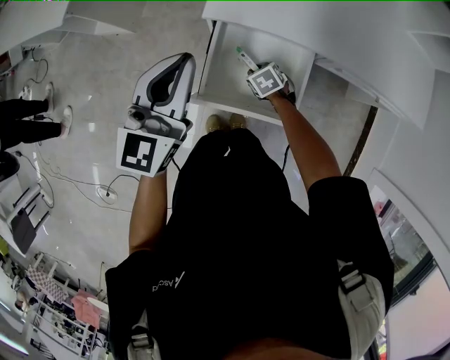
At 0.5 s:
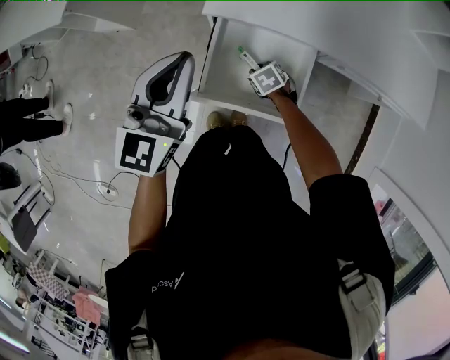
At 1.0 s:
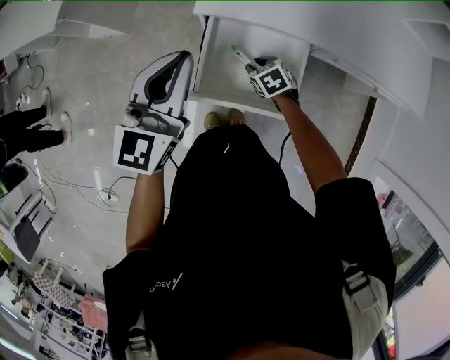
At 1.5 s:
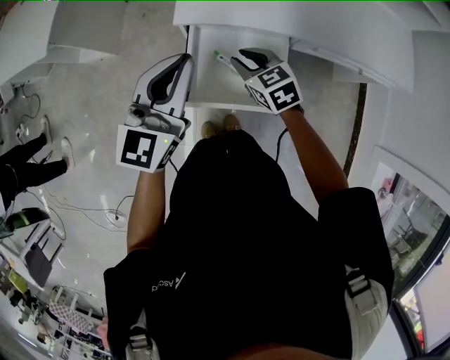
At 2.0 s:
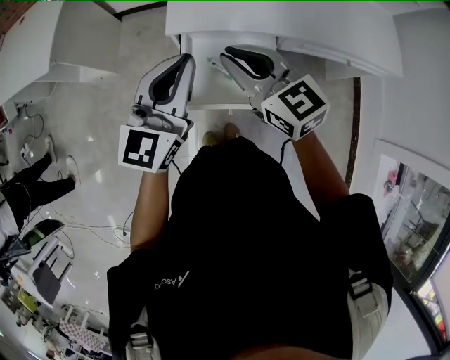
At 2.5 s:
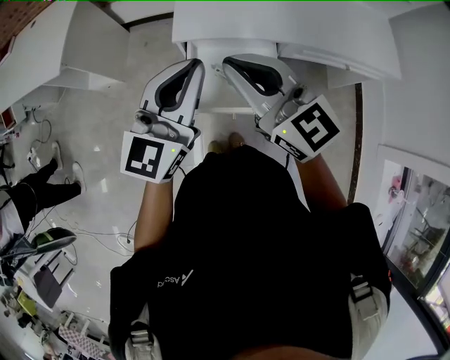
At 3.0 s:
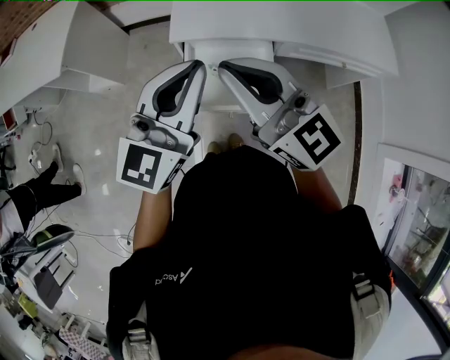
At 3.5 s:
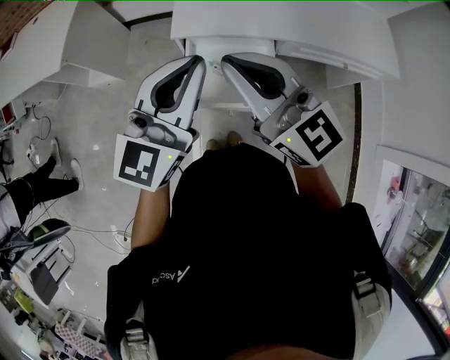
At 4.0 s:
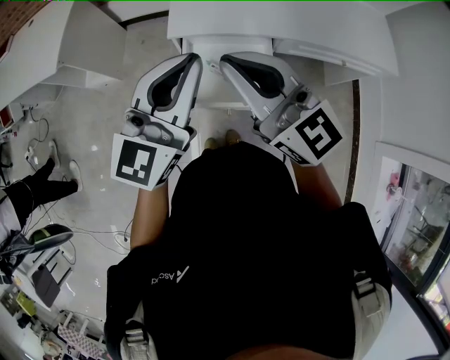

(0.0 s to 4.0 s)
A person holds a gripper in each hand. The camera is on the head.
0.0 s - 2.0 s: The right gripper goes about 40 cm upward, and tips its fingers upward by approximately 50 degrees, while the left gripper travels to the right by about 5 cm.
2.0 s - 4.0 s: Both grippers travel together upward and backward, some 10 cm.

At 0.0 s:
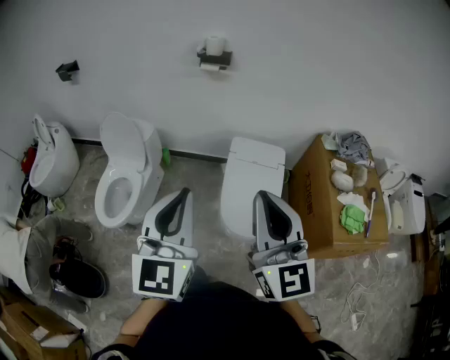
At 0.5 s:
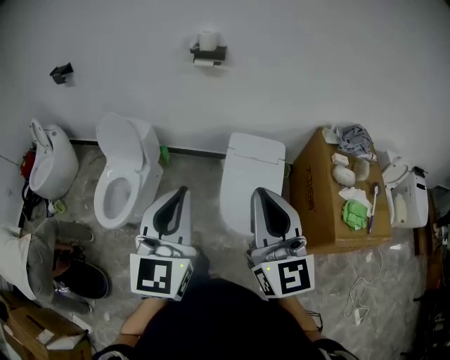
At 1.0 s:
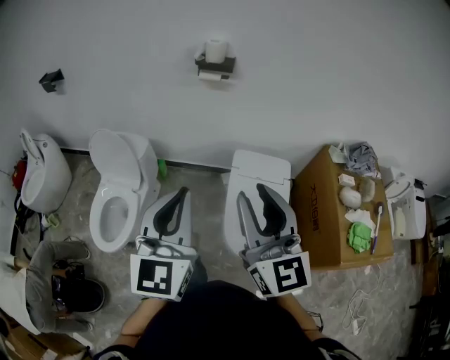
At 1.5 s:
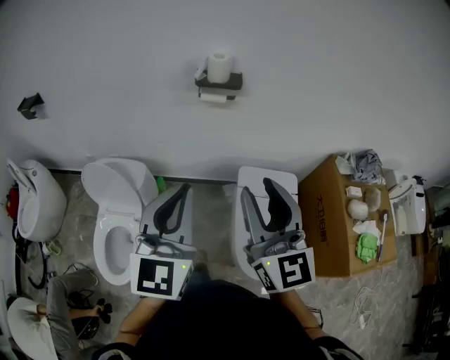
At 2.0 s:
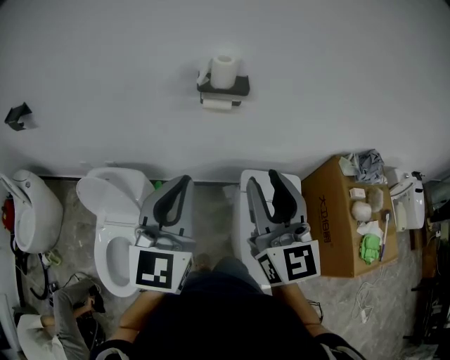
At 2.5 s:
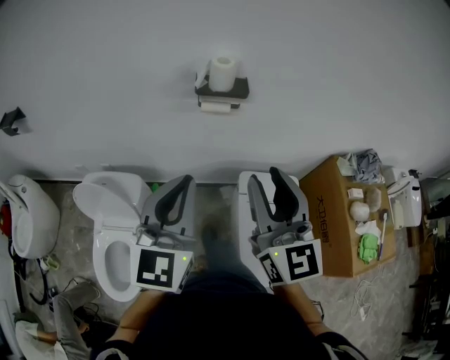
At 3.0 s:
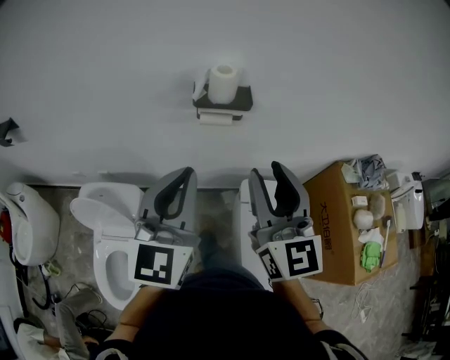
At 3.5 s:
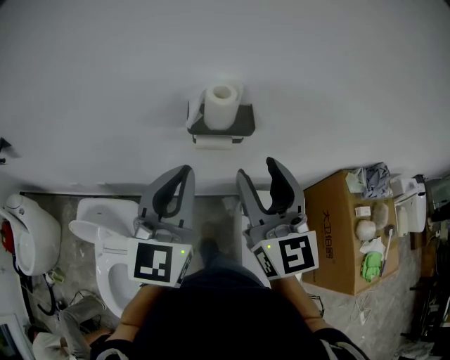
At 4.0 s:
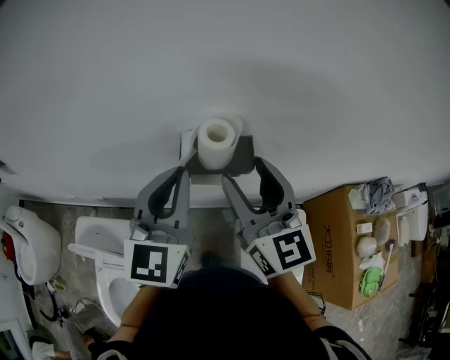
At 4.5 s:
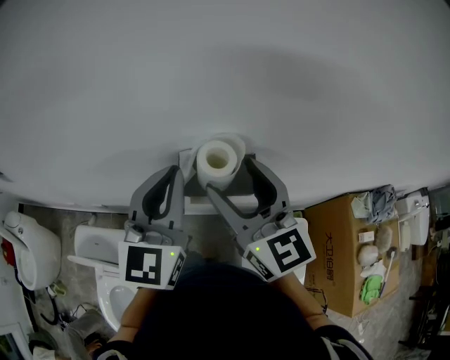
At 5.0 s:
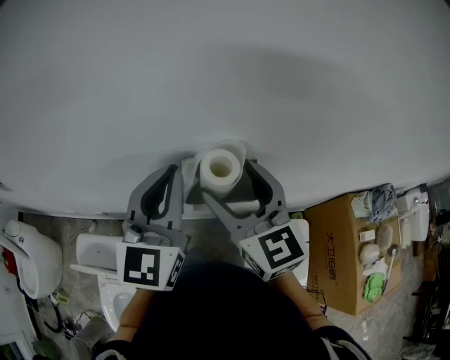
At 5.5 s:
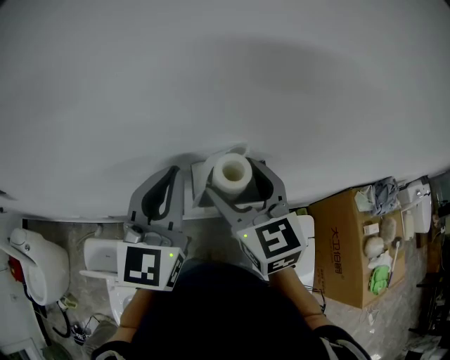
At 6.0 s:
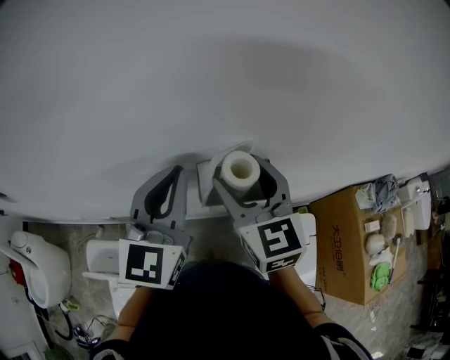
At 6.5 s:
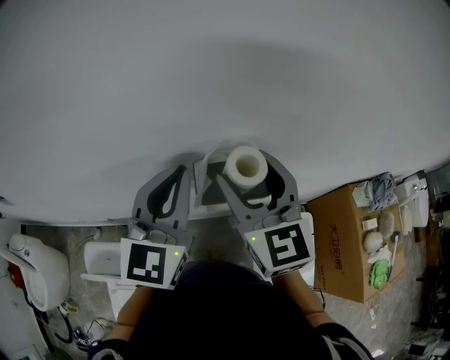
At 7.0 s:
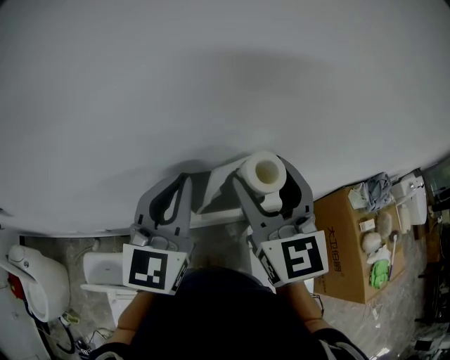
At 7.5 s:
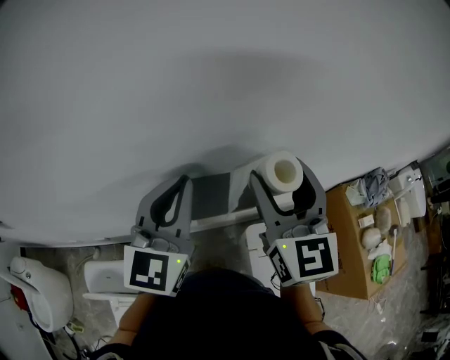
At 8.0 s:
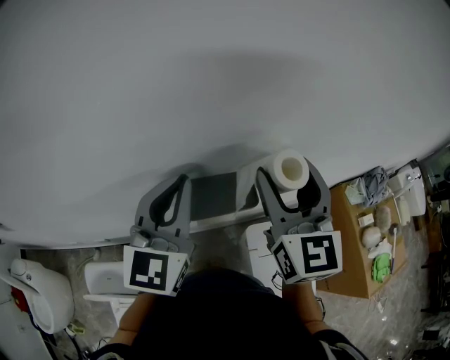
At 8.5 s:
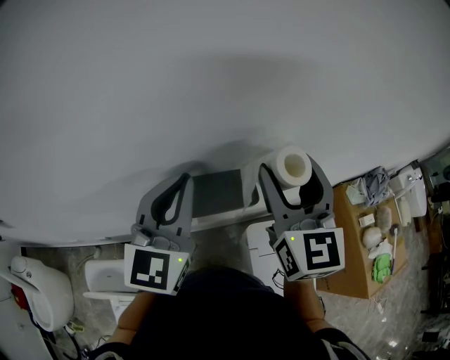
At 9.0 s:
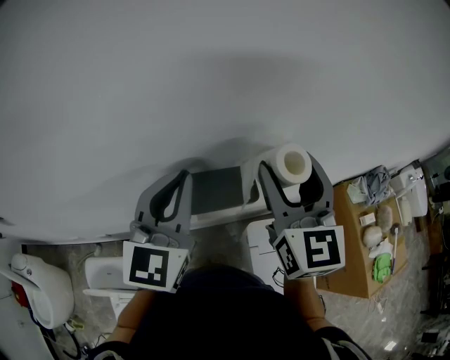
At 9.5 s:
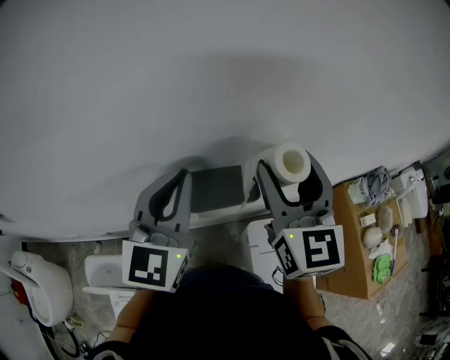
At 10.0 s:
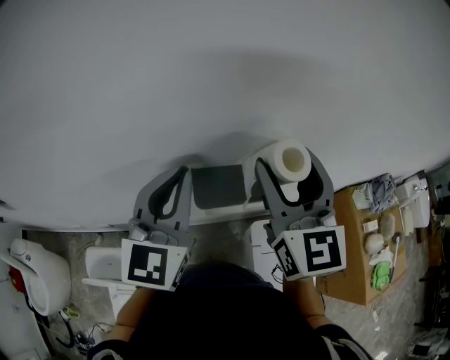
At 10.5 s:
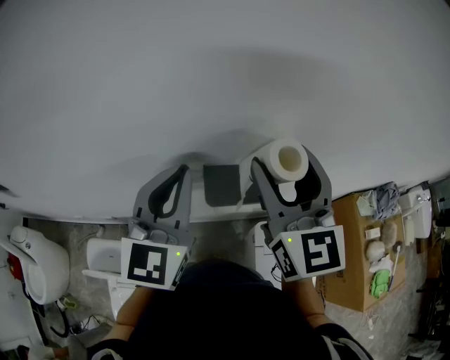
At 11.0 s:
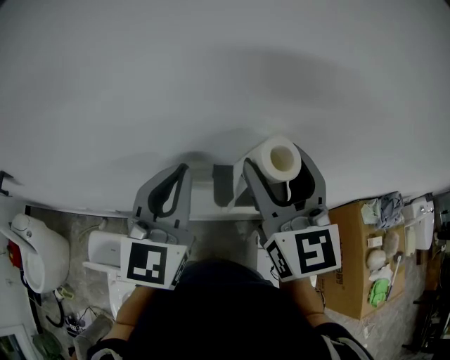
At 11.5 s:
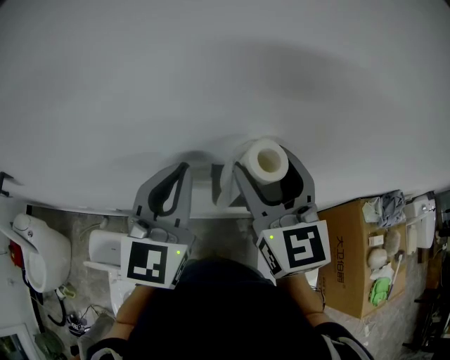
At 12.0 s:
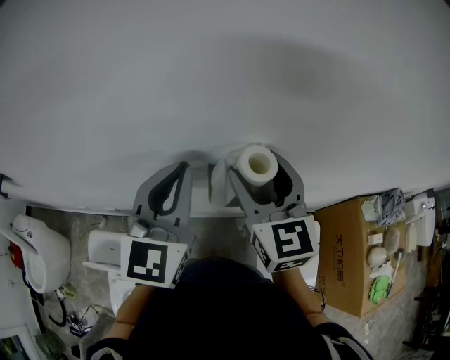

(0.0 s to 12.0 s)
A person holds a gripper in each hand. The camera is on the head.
0.0 s - 2.0 s: The two grippers travel together, forward, some 50 cm. The right gripper opens.
2.0 s - 4.0 s: Both grippers travel together forward, approximately 30 cm.
4.0 s - 6.0 s: The two grippers go some 10 cm forward.
6.0 s - 8.0 s: The right gripper heads to the right and upward, covering roughly 15 cm, and changes its angle by about 20 degrees.
8.0 s - 10.0 s: There are only small adjustments of the grippers.
10.0 s - 12.0 s: The right gripper goes approximately 10 cm downward and to the left.

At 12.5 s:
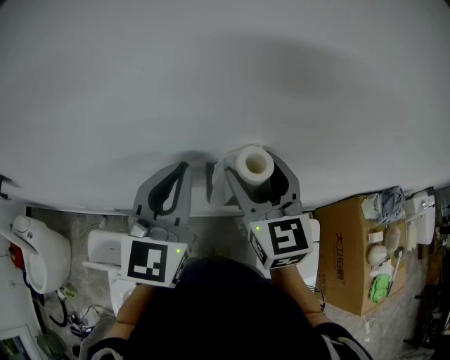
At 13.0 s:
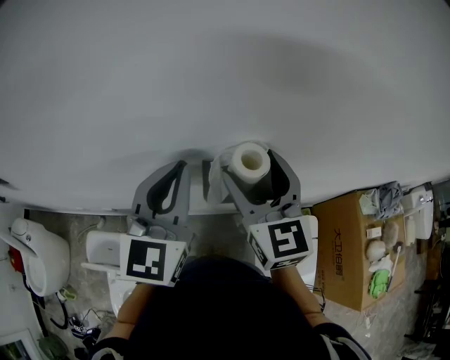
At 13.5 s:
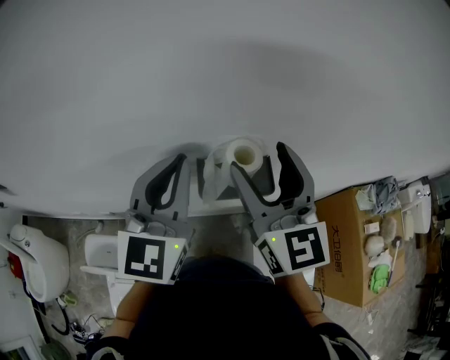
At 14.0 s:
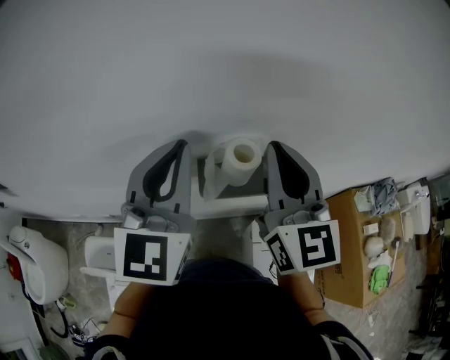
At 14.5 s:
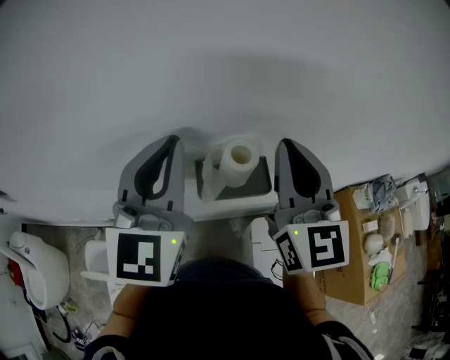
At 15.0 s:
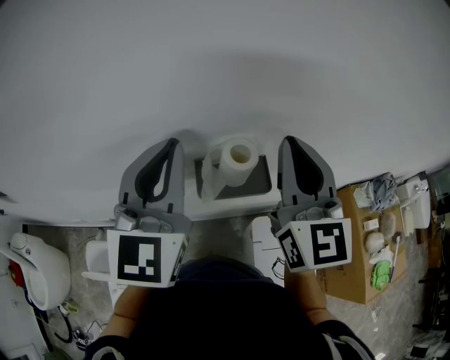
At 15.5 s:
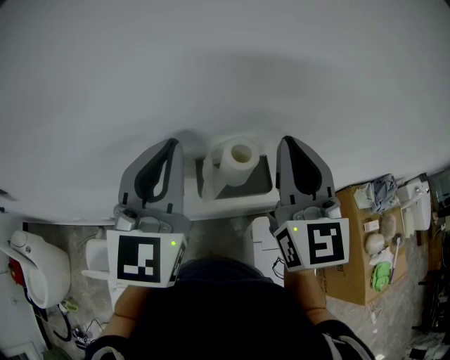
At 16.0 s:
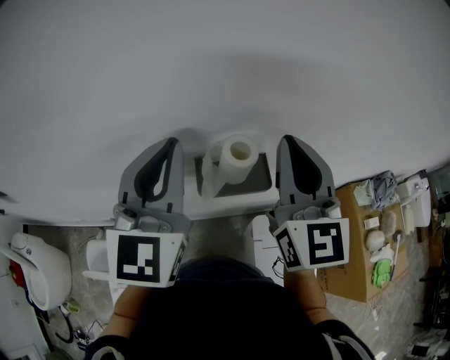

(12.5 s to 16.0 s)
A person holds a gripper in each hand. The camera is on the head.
12.5 s - 14.5 s: The left gripper shifts some 5 cm upward, while the right gripper moves upward and to the right, about 10 cm, and closes.
14.5 s - 16.0 s: Both grippers stay put.

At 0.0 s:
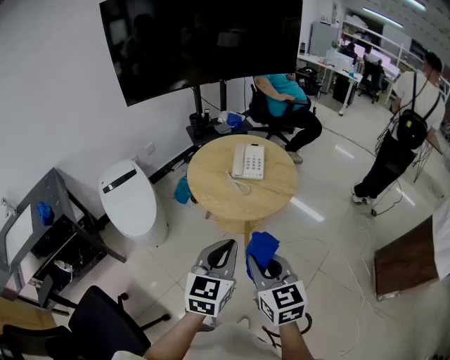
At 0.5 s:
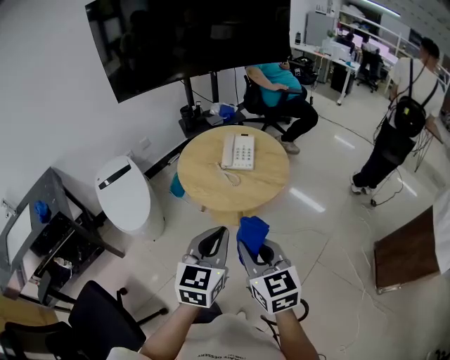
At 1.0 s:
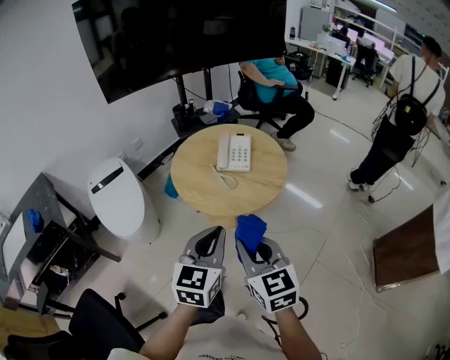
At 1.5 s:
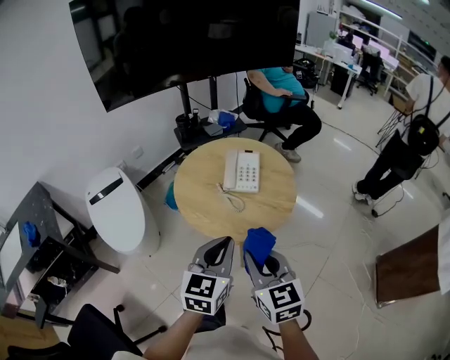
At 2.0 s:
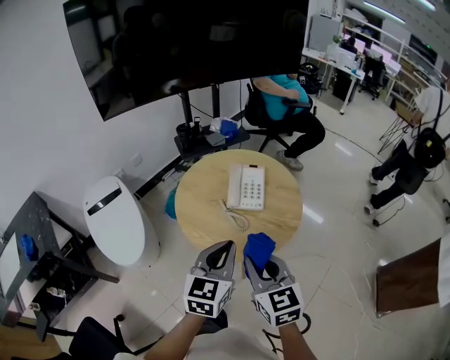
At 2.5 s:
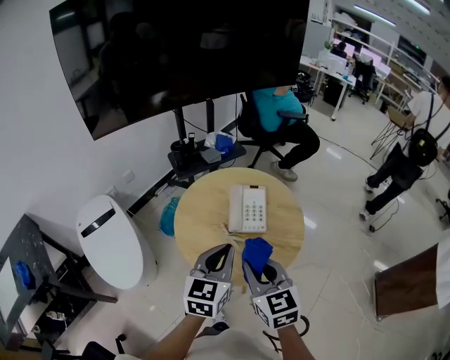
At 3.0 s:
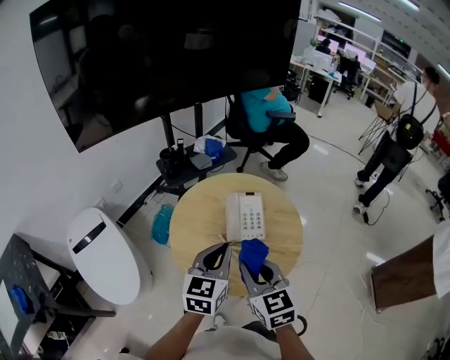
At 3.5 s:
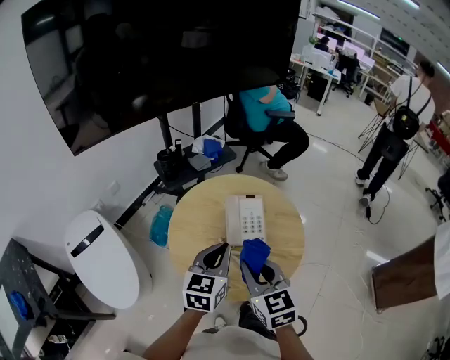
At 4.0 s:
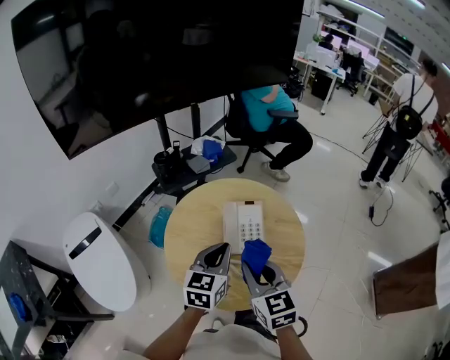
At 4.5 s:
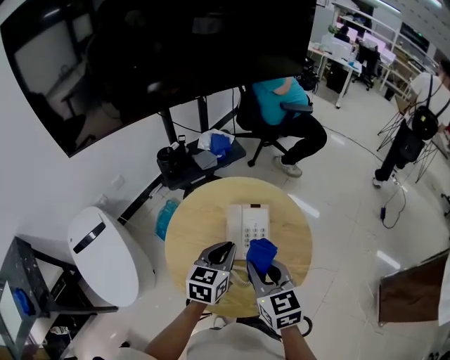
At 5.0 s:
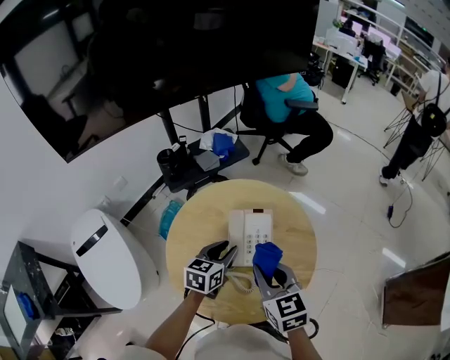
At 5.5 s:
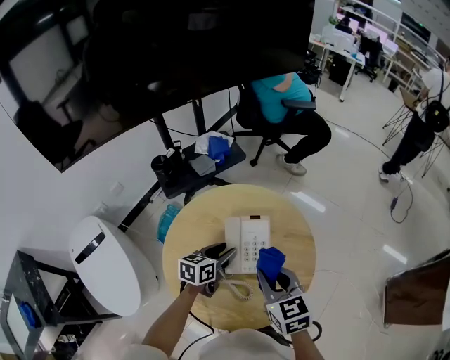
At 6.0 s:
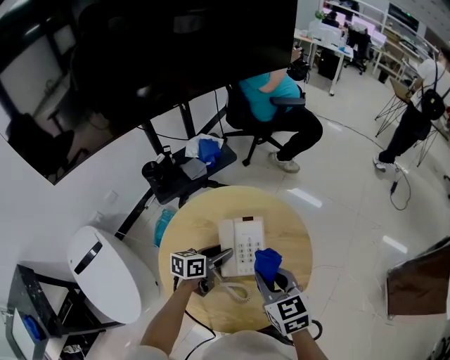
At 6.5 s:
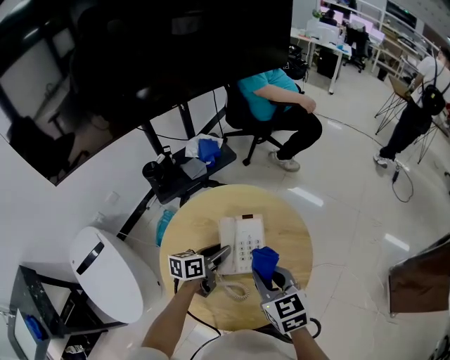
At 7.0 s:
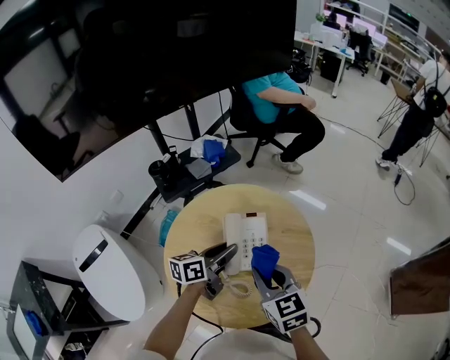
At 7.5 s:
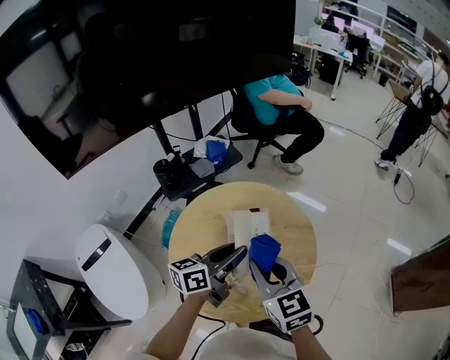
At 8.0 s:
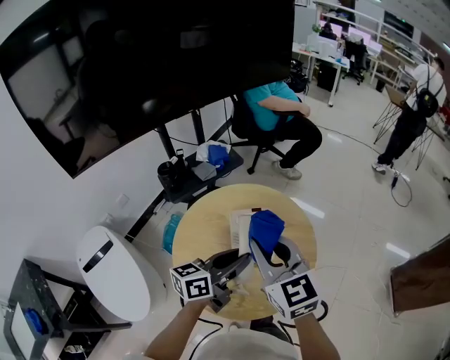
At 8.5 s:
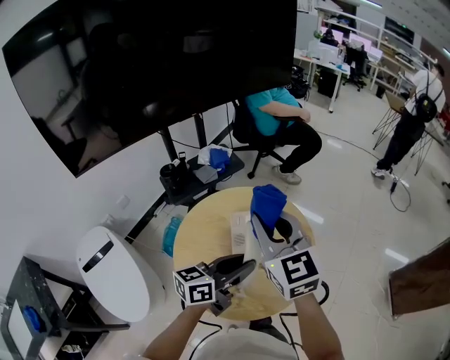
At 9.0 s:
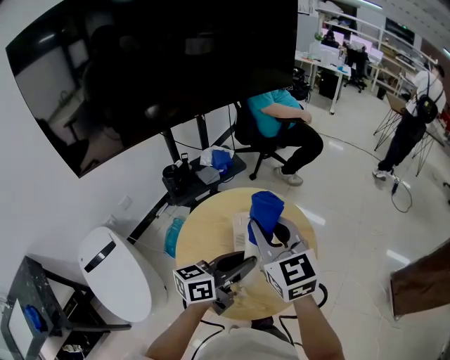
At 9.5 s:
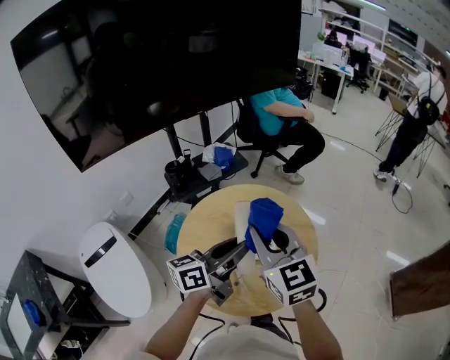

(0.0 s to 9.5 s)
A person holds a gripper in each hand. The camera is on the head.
0.0 s - 2.0 s: Both grippers travel together forward, about 20 cm.
2.0 s - 4.0 s: The two grippers go about 20 cm forward.
4.0 s - 5.5 s: The left gripper shifts approximately 20 cm downward and forward, swivels roughly 20 degrees, and opens up. The right gripper shifts approximately 10 cm forward and downward.
5.5 s - 7.5 s: The left gripper is displaced upward by about 15 cm, and turns by roughly 30 degrees. The right gripper moves upward, roughly 5 cm.
7.5 s - 9.5 s: Both grippers move upward, some 10 cm.
